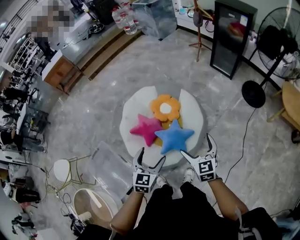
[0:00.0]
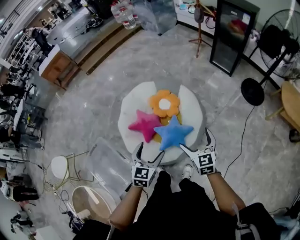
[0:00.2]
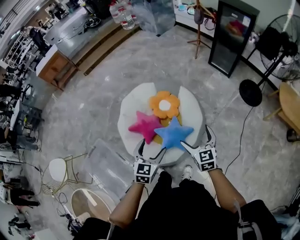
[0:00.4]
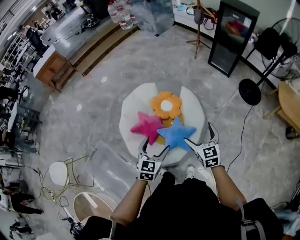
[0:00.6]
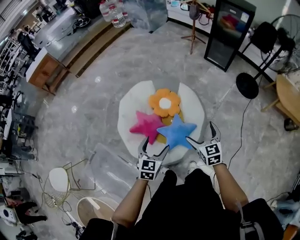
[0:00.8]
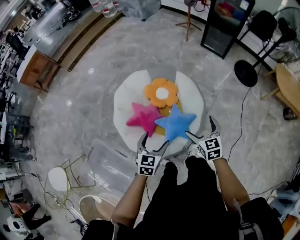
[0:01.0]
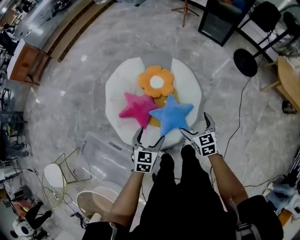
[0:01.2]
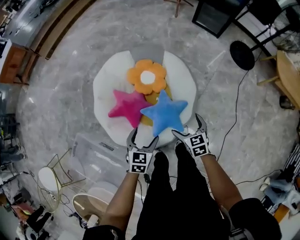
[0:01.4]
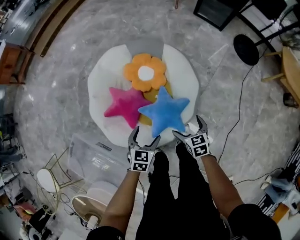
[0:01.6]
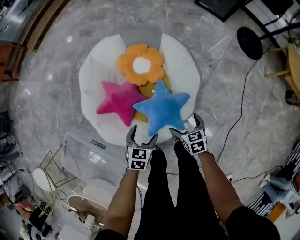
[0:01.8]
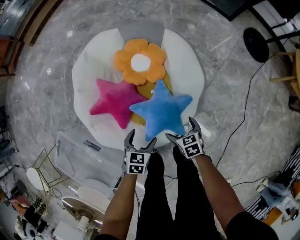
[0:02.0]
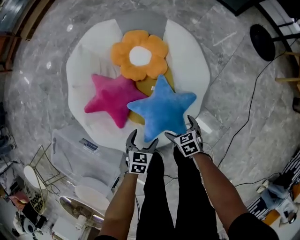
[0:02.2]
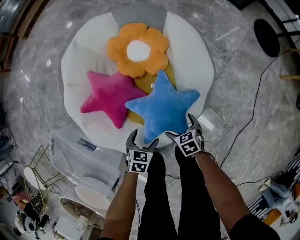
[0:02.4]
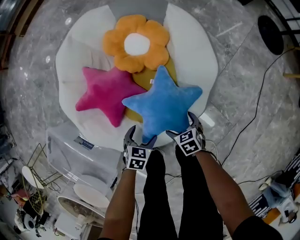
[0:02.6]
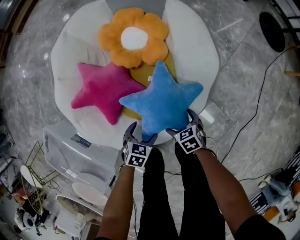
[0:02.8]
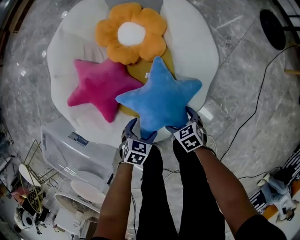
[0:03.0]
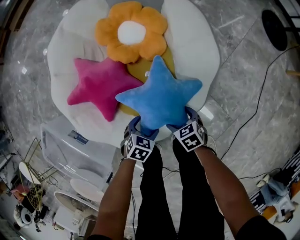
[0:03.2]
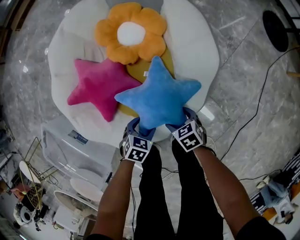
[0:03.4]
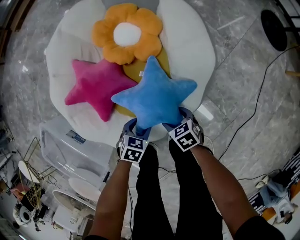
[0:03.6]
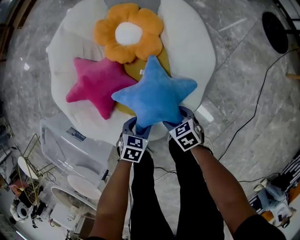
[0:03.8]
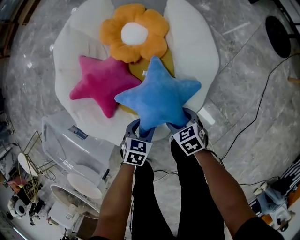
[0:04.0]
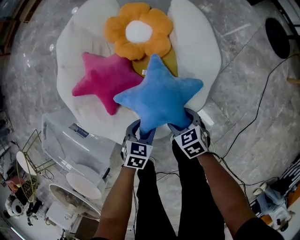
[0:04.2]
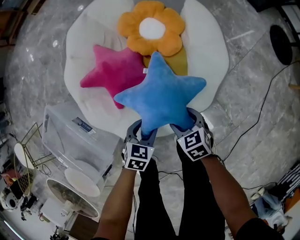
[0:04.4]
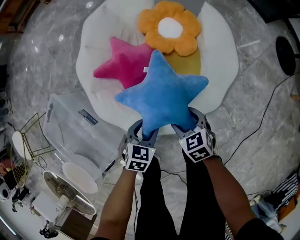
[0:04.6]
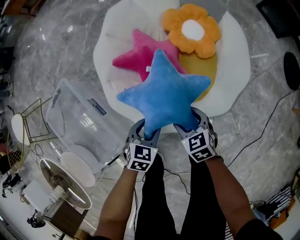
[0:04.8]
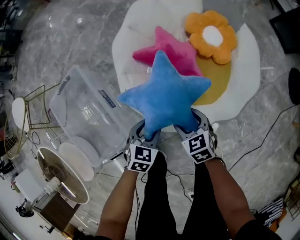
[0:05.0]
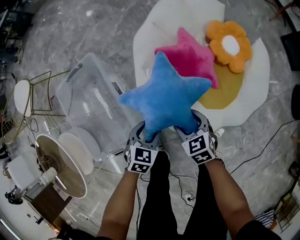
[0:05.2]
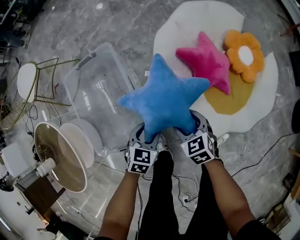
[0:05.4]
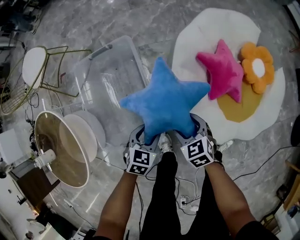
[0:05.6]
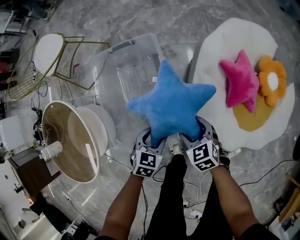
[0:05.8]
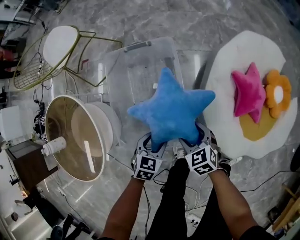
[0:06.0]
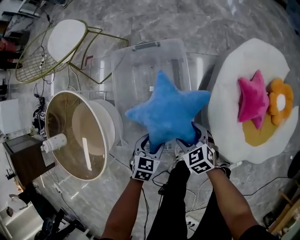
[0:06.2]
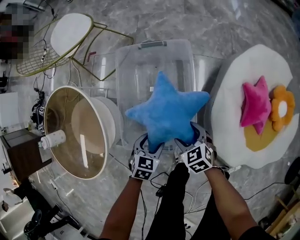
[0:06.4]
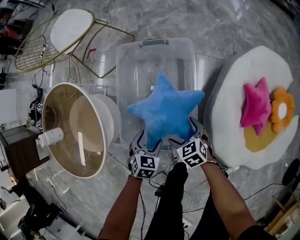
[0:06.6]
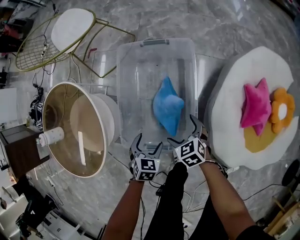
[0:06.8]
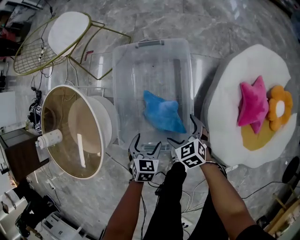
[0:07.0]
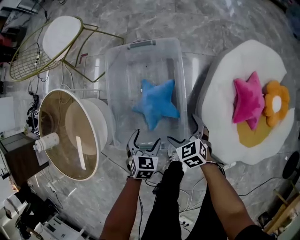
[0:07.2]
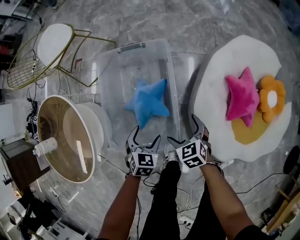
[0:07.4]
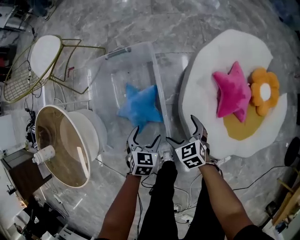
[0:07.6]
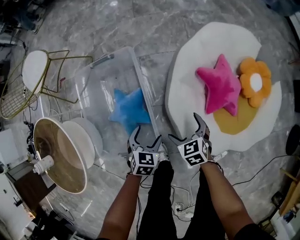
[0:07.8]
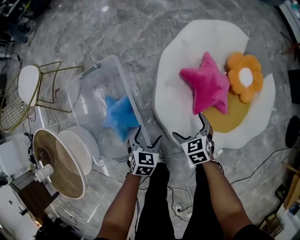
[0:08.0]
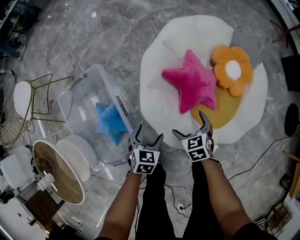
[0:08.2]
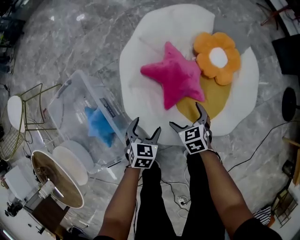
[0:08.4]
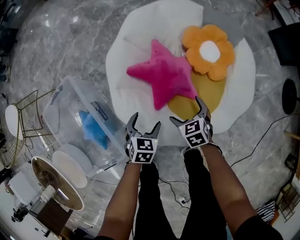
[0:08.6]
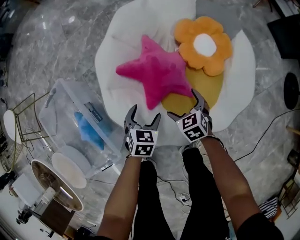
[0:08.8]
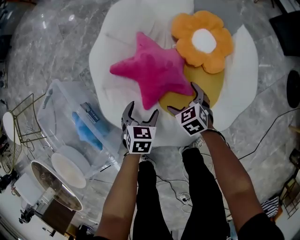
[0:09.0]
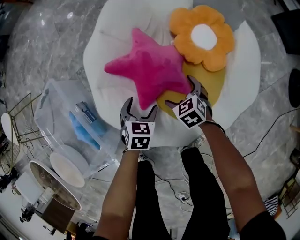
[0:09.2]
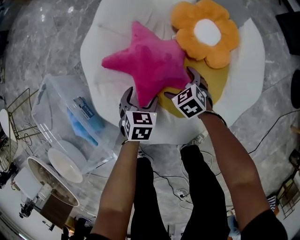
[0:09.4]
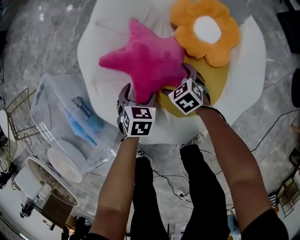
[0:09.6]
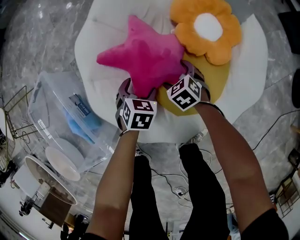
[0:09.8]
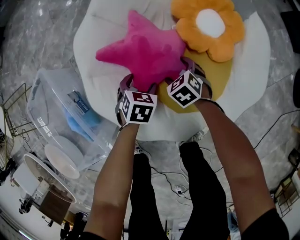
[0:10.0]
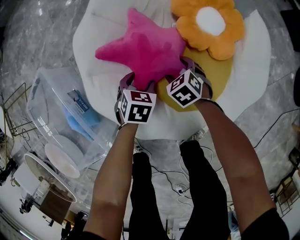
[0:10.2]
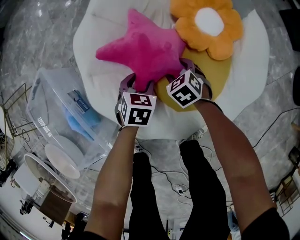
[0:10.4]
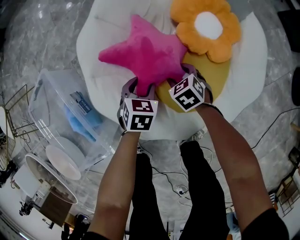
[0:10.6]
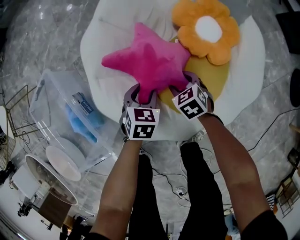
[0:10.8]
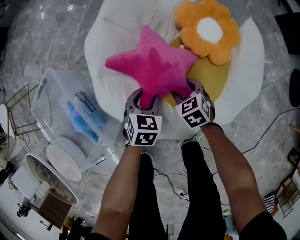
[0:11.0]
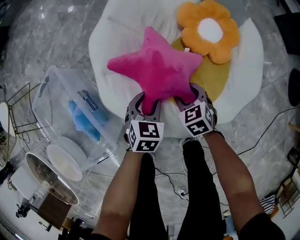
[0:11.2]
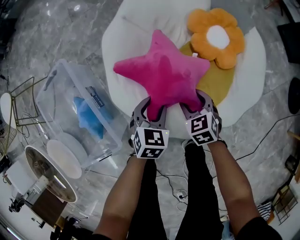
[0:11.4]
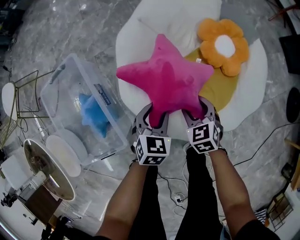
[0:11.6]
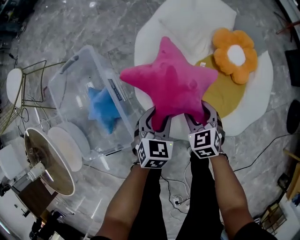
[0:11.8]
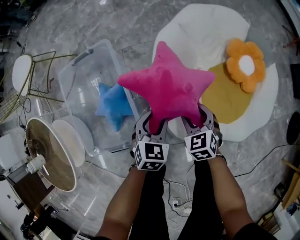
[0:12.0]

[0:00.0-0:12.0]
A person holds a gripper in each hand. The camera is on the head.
0:00.0 to 0:01.6: The left gripper shifts roughly 35 cm downward and forward, and swivels approximately 20 degrees, while the right gripper shifts some 35 cm downward, and swivels about 30 degrees.
0:01.6 to 0:03.0: The grippers both shift downward by roughly 40 cm. The left gripper turns by roughly 20 degrees. Meanwhile the right gripper rotates roughly 30 degrees.
0:03.0 to 0:04.4: The two grippers go roughly 10 cm upward. The left gripper closes.
0:04.4 to 0:06.0: The two grippers travel together, some 60 cm. The right gripper rotates around the line of its fingers by approximately 40 degrees, counterclockwise from behind, while the left gripper changes its angle by about 40 degrees.
0:06.0 to 0:07.6: Both grippers travel together to the right, some 5 cm. The right gripper opens.
0:07.6 to 0:09.0: The pair of grippers is taken some 50 cm. The right gripper turns by about 20 degrees. Meanwhile the left gripper swivels about 20 degrees.
0:09.0 to 0:10.4: The left gripper moves downward and forward, roughly 10 cm. Meanwhile the right gripper moves downward, some 10 cm, and closes its fingers.
0:10.4 to 0:12.0: The grippers both shift to the left, upward and backward by roughly 35 cm.

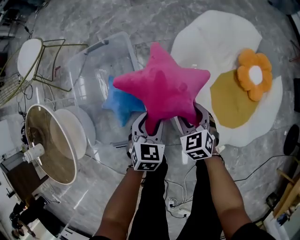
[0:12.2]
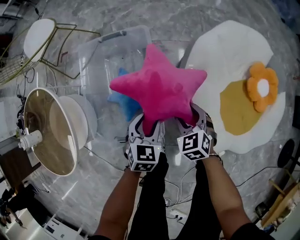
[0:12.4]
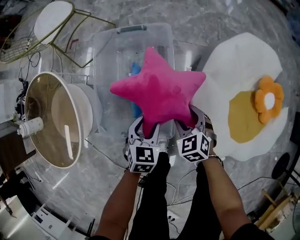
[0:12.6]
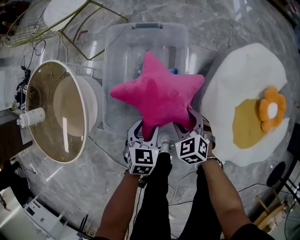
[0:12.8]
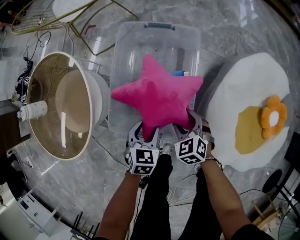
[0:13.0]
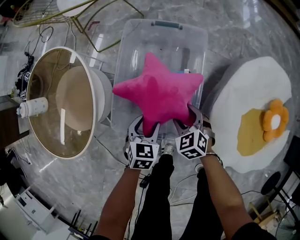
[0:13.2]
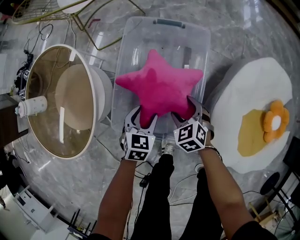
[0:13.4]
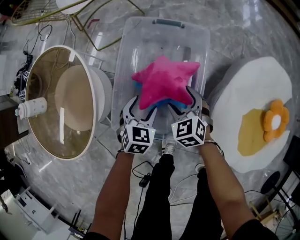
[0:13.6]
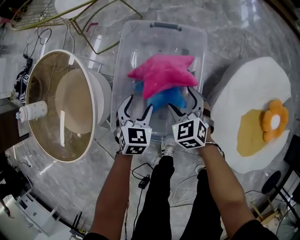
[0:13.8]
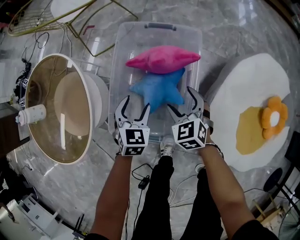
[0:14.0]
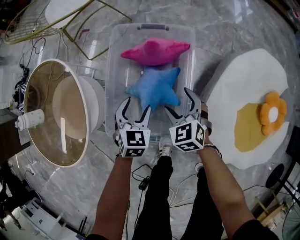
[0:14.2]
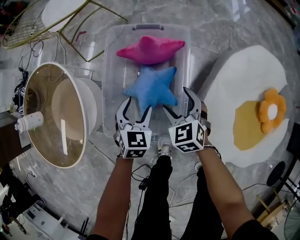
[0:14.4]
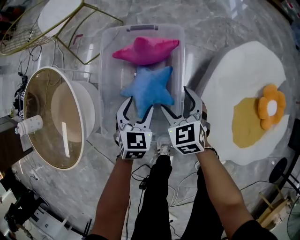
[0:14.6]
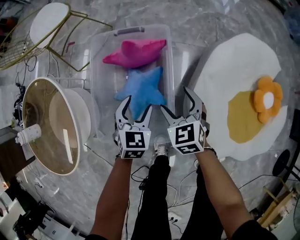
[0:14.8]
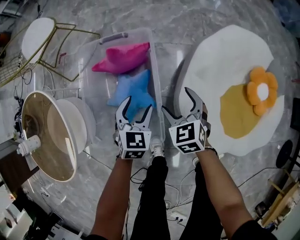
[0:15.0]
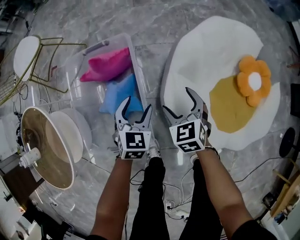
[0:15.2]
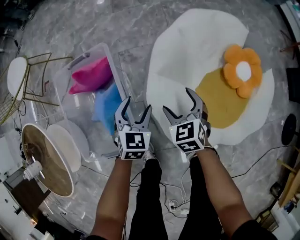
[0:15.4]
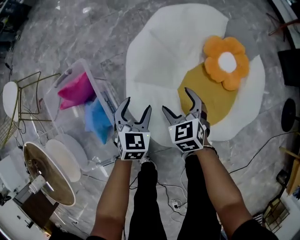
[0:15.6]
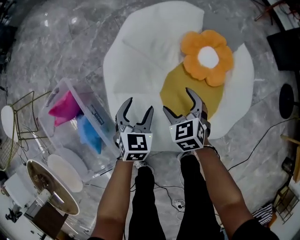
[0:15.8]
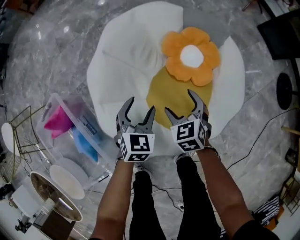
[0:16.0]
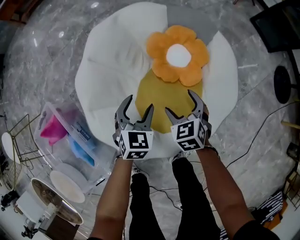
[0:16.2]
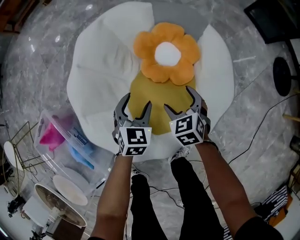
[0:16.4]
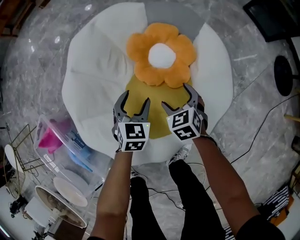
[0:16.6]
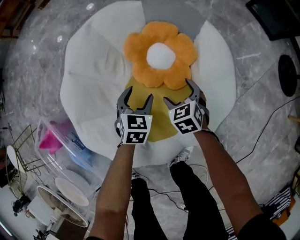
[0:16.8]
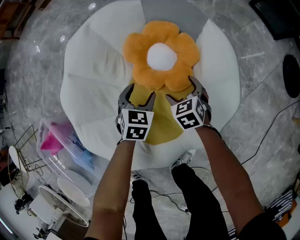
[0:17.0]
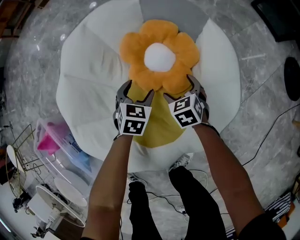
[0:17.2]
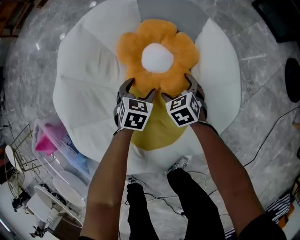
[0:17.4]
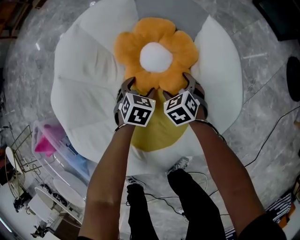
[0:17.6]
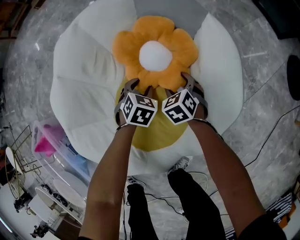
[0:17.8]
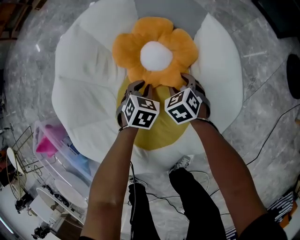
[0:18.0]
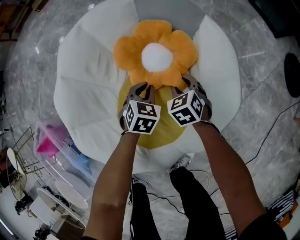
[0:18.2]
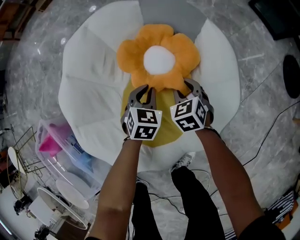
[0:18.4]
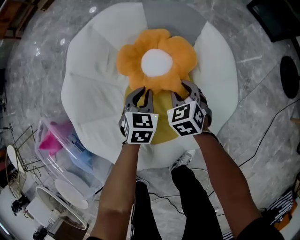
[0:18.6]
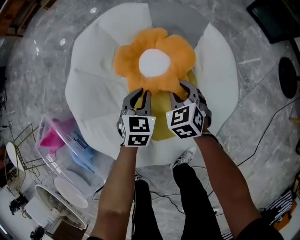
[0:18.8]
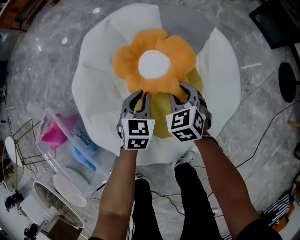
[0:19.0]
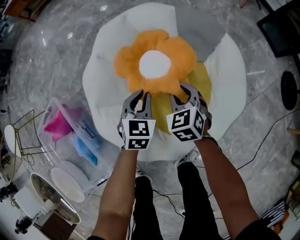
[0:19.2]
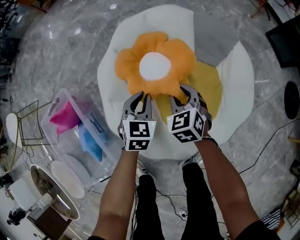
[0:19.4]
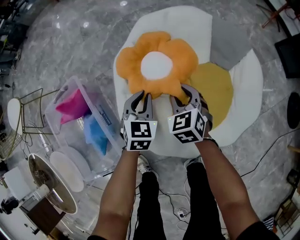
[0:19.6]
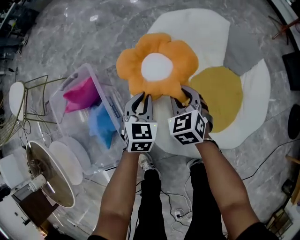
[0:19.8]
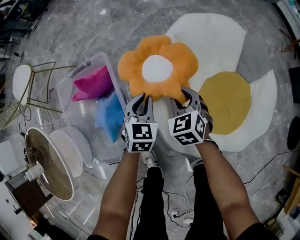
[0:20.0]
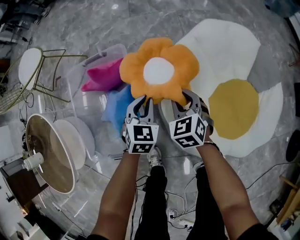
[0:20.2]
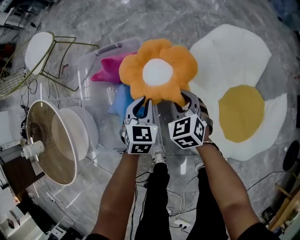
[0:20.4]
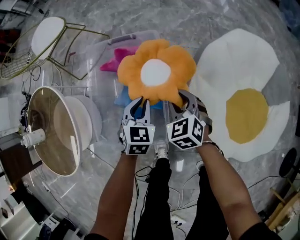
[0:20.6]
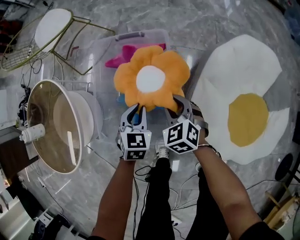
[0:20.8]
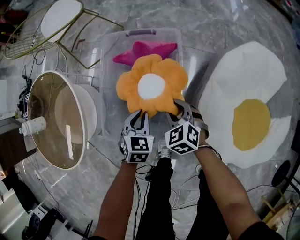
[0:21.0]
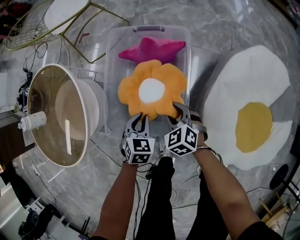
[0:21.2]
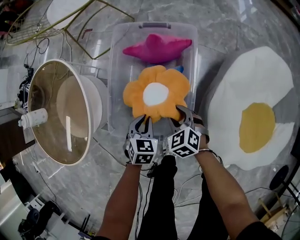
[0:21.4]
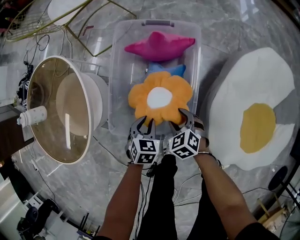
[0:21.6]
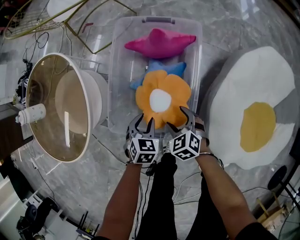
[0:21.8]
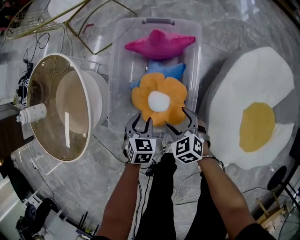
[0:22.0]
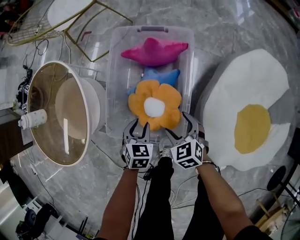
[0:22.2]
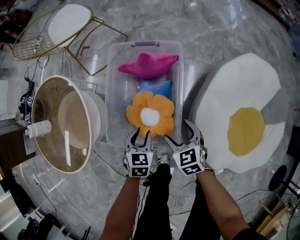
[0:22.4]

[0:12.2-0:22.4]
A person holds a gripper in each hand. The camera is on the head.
0:12.2 to 0:13.6: Both grippers move to the left, roughly 30 cm. The right gripper turns by roughly 30 degrees.
0:13.6 to 0:15.2: The grippers both shift to the right by approximately 30 cm. The right gripper changes its angle by about 30 degrees.
0:15.2 to 0:16.6: The two grippers travel together, about 60 cm. The left gripper changes its angle by about 30 degrees. Meanwhile the right gripper turns by approximately 30 degrees.
0:16.6 to 0:18.0: The left gripper goes roughly 15 cm downward, to the right and forward, and closes up. The right gripper goes about 15 cm downward, forward and to the right, and closes.
0:18.0 to 0:19.4: The left gripper travels to the left, upward and backward by roughly 35 cm, and rotates some 30 degrees; the right gripper shifts some 35 cm to the left and upward.
0:19.4 to 0:21.0: Both grippers are carried some 60 cm. The left gripper changes its angle by some 40 degrees; the right gripper changes its angle by roughly 50 degrees.
0:21.0 to 0:22.4: The right gripper goes roughly 5 cm backward, and opens up. The left gripper goes downward and returns, some 5 cm each way.

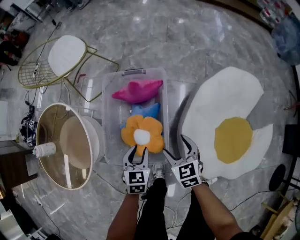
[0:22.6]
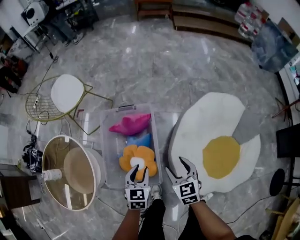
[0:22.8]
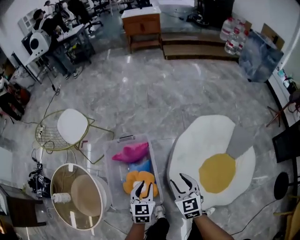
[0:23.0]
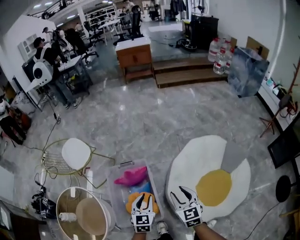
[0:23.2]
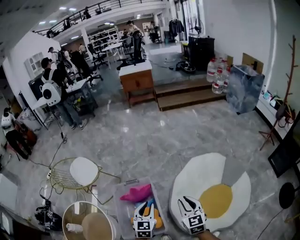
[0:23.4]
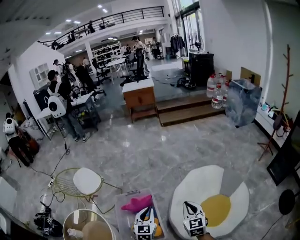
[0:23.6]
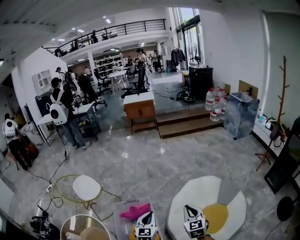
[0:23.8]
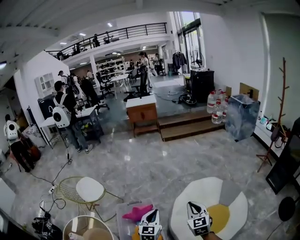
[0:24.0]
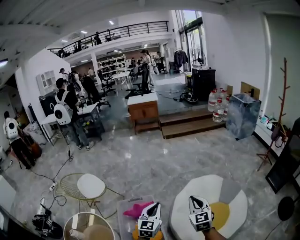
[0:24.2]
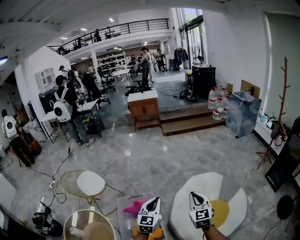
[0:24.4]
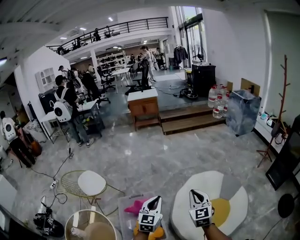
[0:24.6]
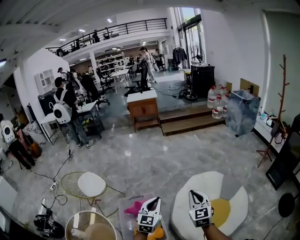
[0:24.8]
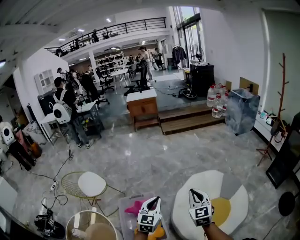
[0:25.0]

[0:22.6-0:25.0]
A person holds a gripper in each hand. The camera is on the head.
0:22.6 to 0:23.8: The two grippers go about 50 cm upward. The right gripper turns by approximately 40 degrees, and closes up. Meanwhile the left gripper points its fingers some 30 degrees further upward, and closes its fingers.
0:23.8 to 0:25.0: Both grippers move upward, roughly 10 cm.
